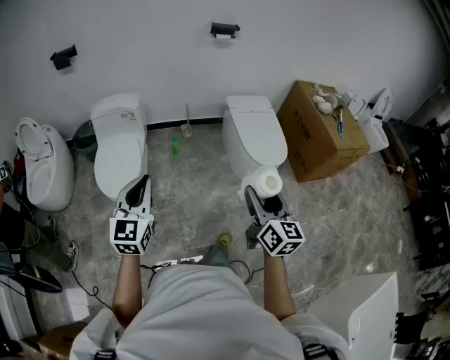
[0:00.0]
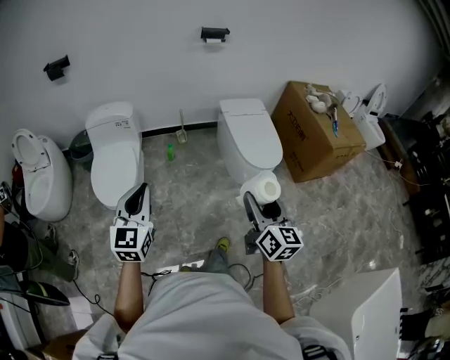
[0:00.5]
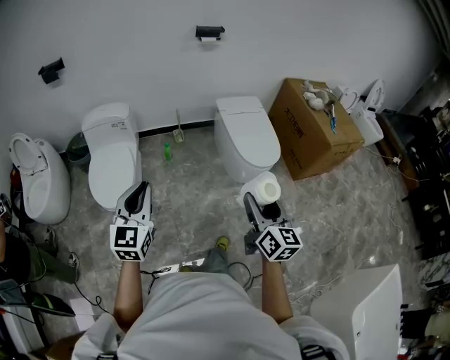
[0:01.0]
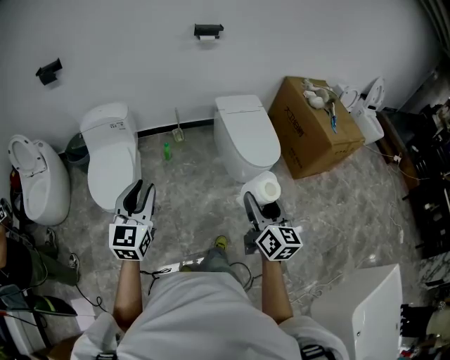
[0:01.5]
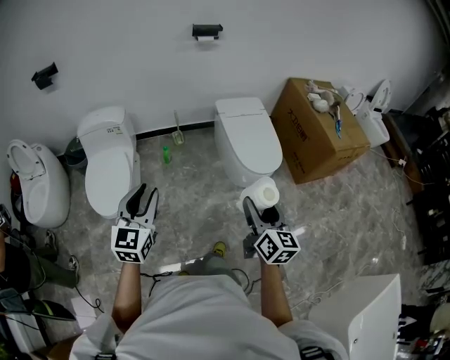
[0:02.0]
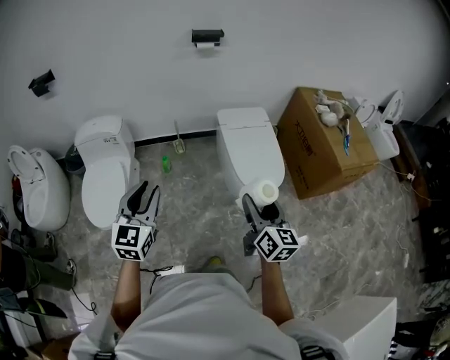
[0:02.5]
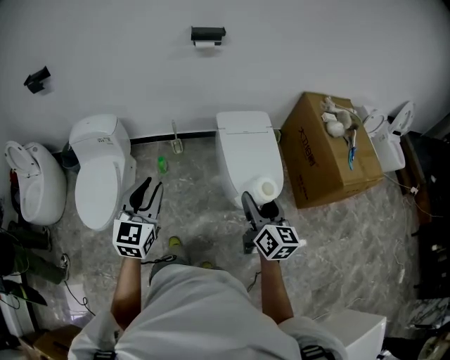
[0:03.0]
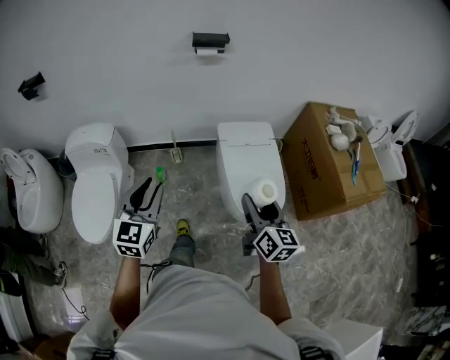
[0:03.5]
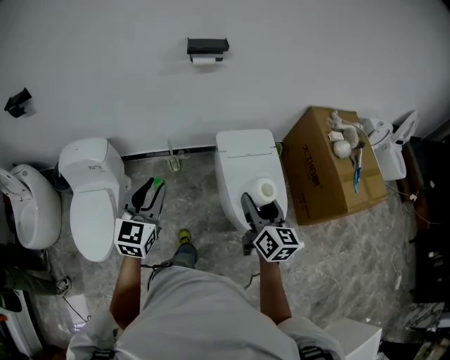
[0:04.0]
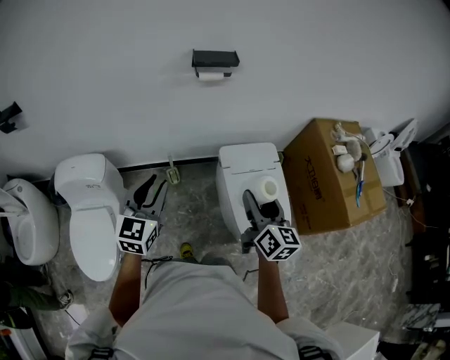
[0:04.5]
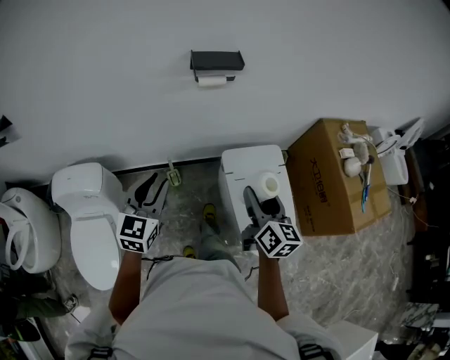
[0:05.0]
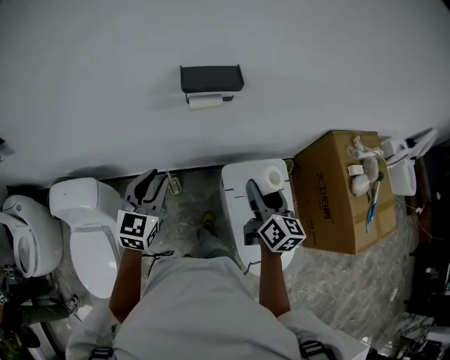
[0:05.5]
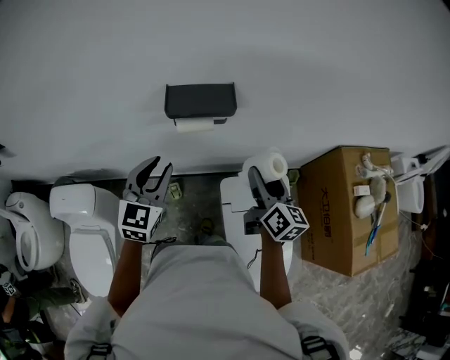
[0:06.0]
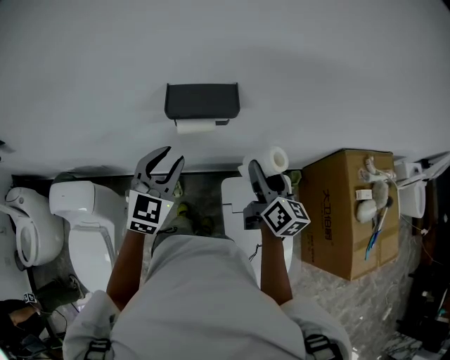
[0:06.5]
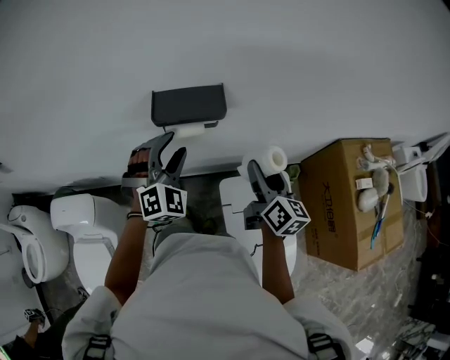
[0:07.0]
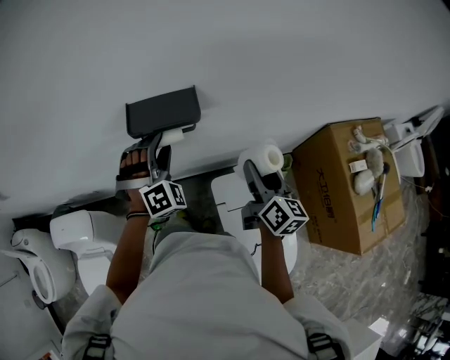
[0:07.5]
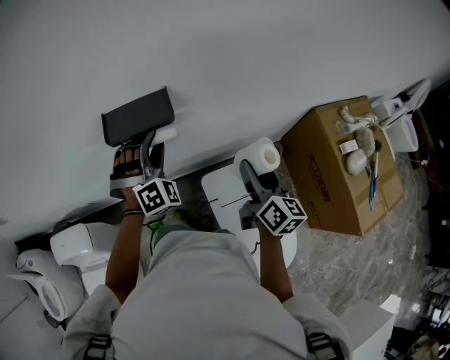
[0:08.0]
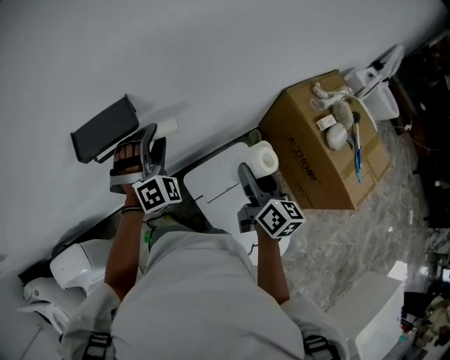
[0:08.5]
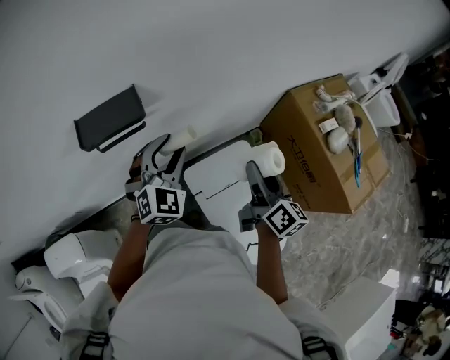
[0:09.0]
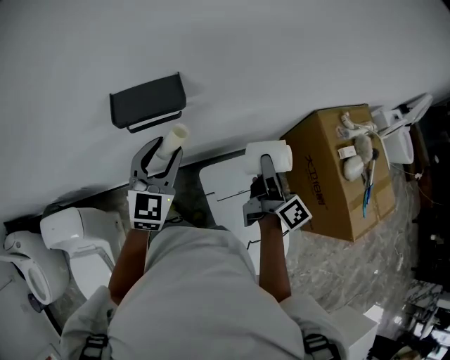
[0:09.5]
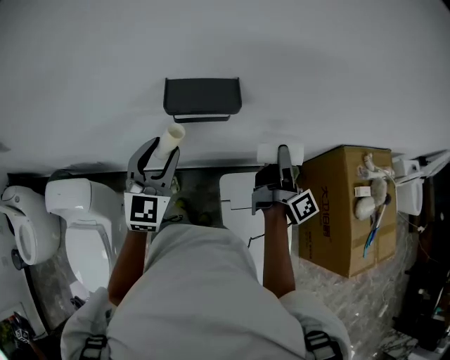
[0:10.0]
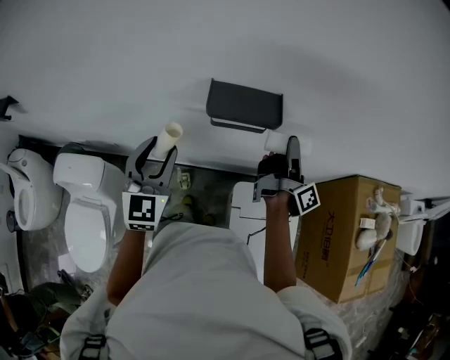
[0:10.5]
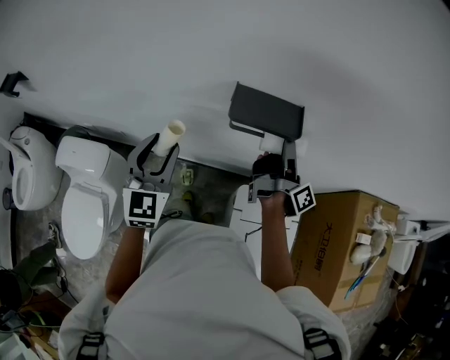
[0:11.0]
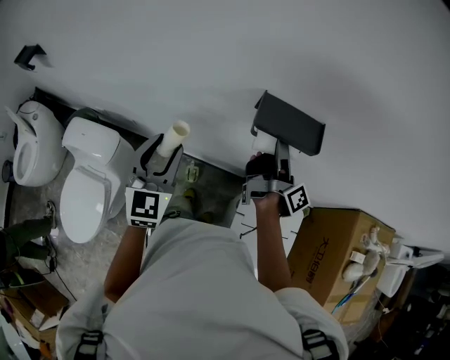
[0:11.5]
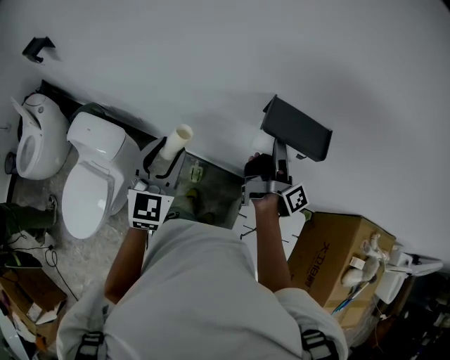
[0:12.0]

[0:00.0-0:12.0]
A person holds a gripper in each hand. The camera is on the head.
0:00.0 to 0:02.0: The right gripper goes some 10 cm to the right and forward; the left gripper goes some 10 cm forward and to the right, and opens.
0:02.0 to 0:04.0: The two grippers travel together, forward, about 50 cm.
0:04.0 to 0:06.0: The two grippers travel together, forward, roughly 50 cm.
0:06.0 to 0:08.0: The right gripper shifts roughly 10 cm to the right, while the left gripper goes approximately 15 cm forward and to the right, and rotates around the line of its fingers by about 60 degrees, clockwise from behind.
0:08.0 to 0:10.0: The left gripper travels backward, to the left and upward by roughly 15 cm, and rolls counterclockwise, seen from behind, by about 60 degrees, while the right gripper ends up approximately 5 cm from where it was, and swivels some 40 degrees.
0:10.0 to 0:12.0: The left gripper is displaced to the left by some 15 cm, and swivels about 20 degrees, while the right gripper heads to the left and forward, covering about 25 cm, and swivels approximately 30 degrees.

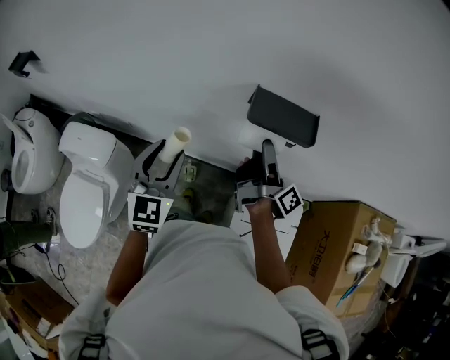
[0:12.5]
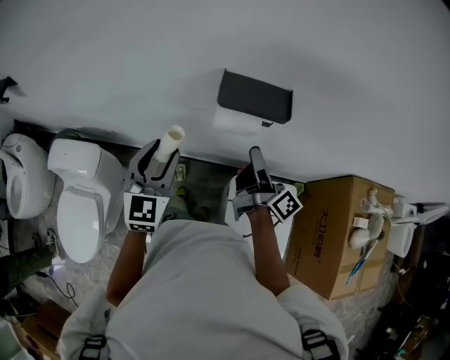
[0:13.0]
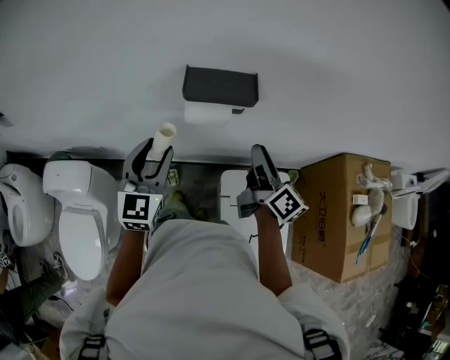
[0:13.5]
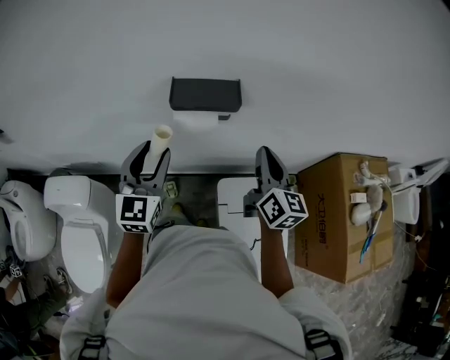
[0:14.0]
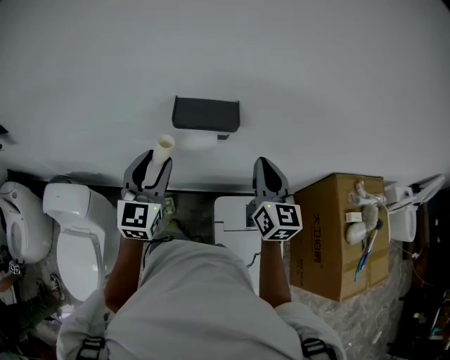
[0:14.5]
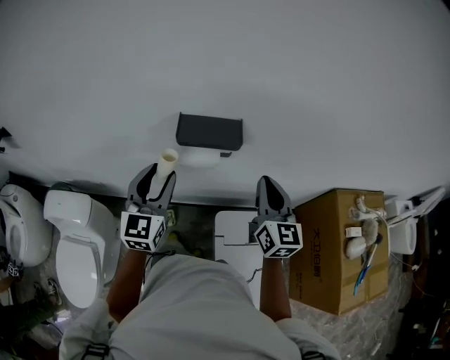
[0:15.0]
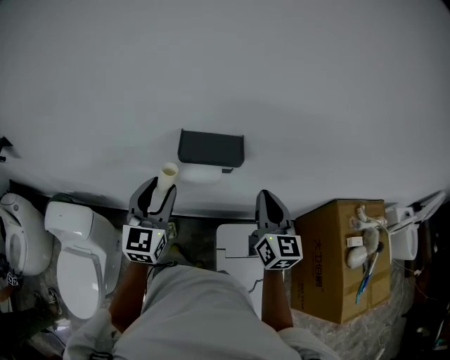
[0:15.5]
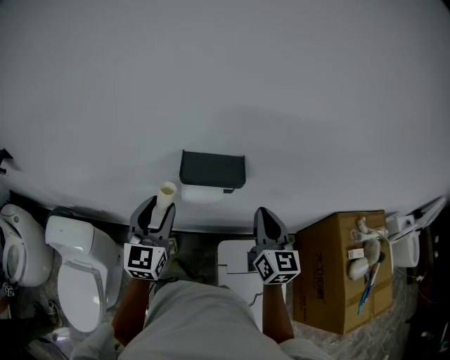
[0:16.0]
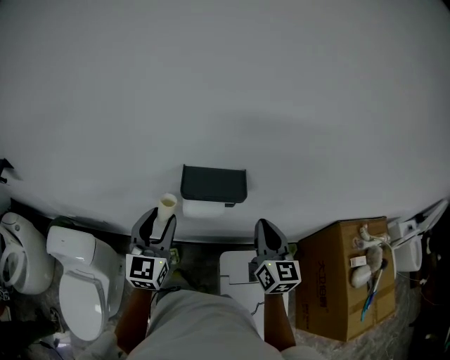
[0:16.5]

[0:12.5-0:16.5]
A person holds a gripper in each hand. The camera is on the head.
0:12.5 to 0:14.5: The left gripper moves to the right and upward, approximately 15 cm; the right gripper travels to the right, backward and upward by about 20 cm, rotates around the line of its fingers by approximately 80 degrees, counterclockwise from behind, and closes.
0:14.5 to 0:16.5: The grippers stay close to where they were, moving slightly.

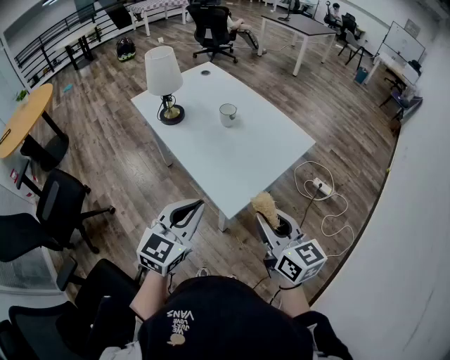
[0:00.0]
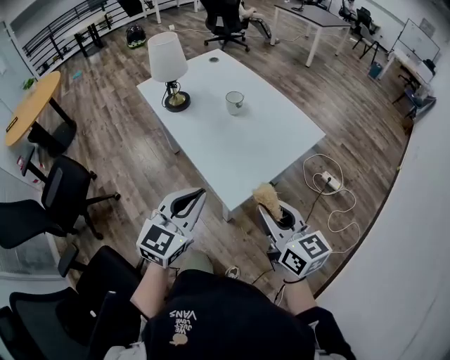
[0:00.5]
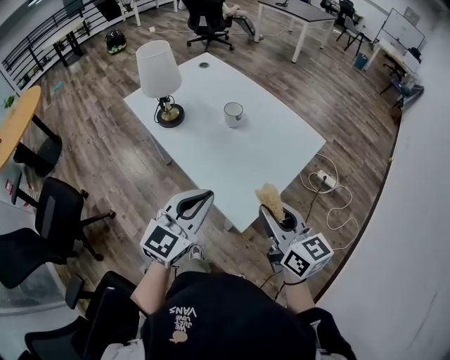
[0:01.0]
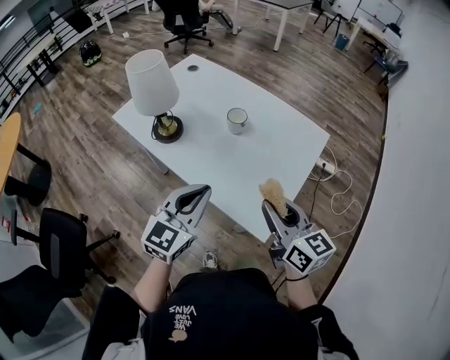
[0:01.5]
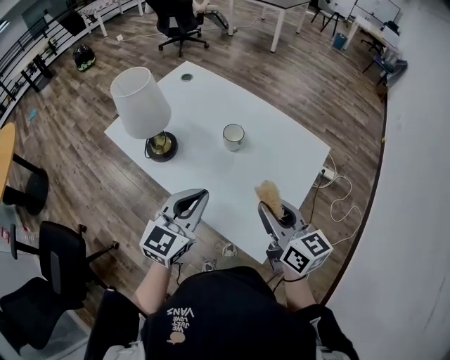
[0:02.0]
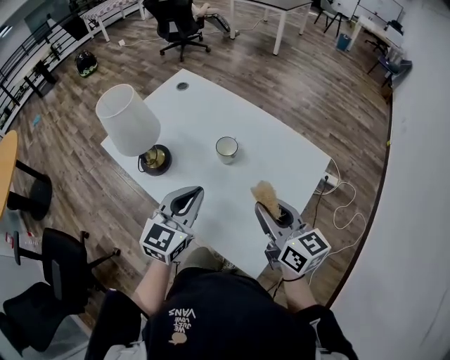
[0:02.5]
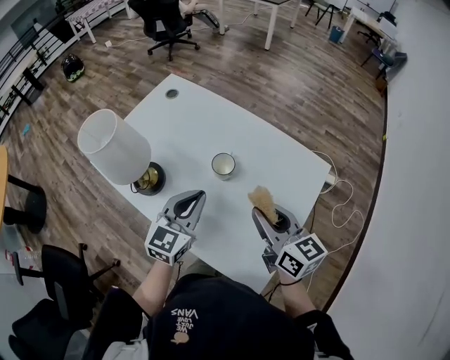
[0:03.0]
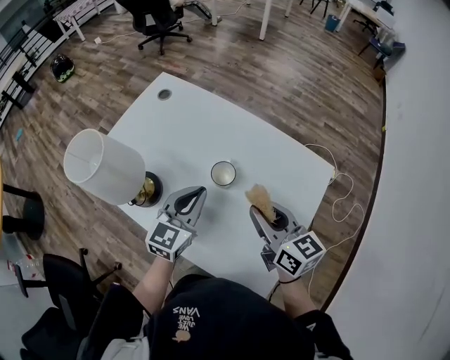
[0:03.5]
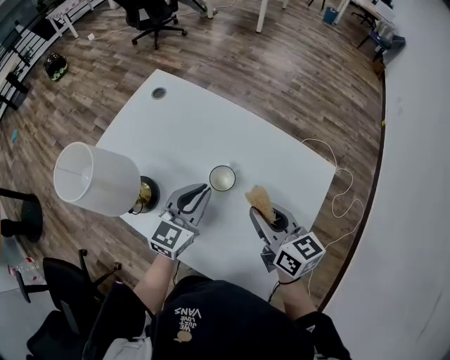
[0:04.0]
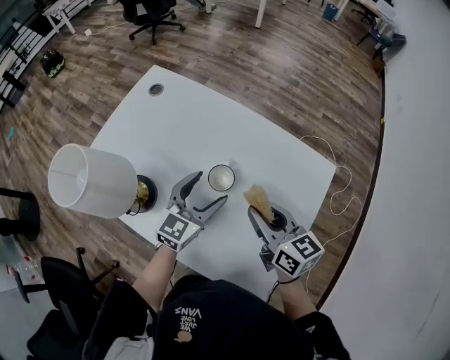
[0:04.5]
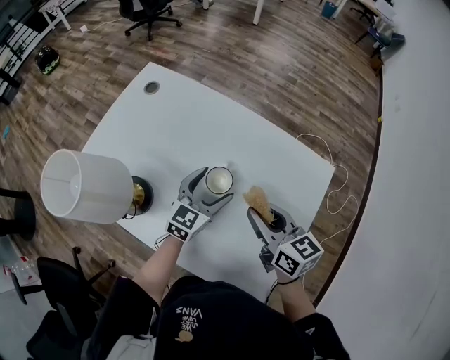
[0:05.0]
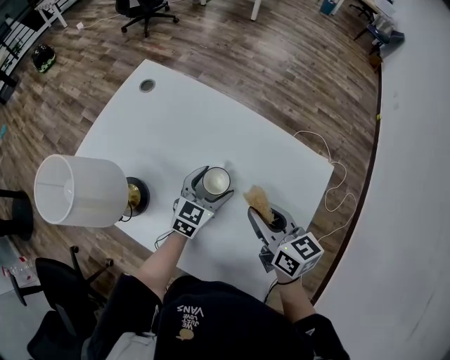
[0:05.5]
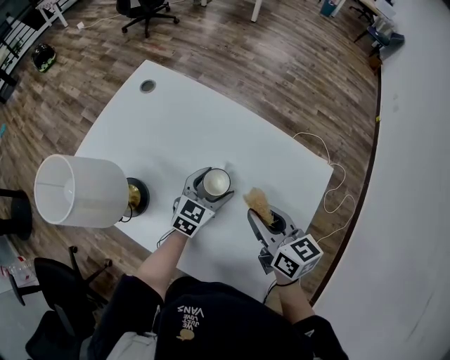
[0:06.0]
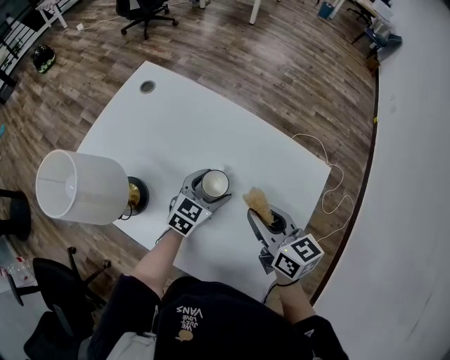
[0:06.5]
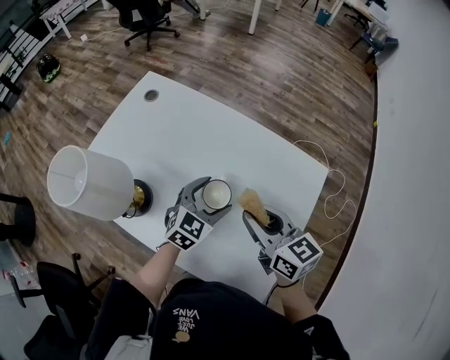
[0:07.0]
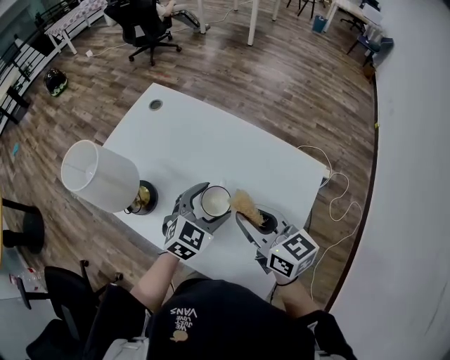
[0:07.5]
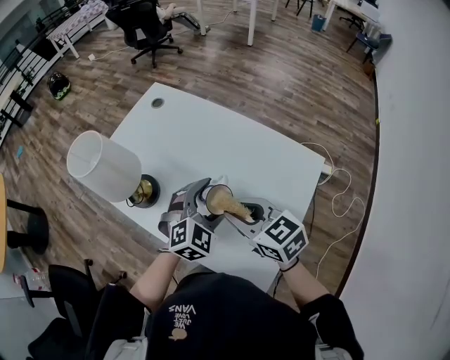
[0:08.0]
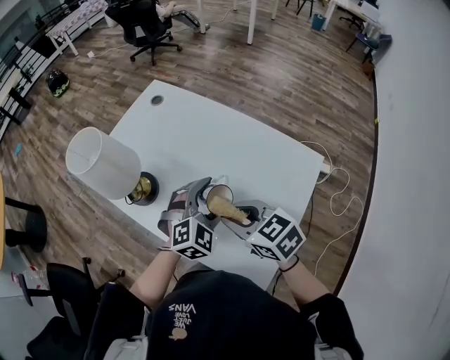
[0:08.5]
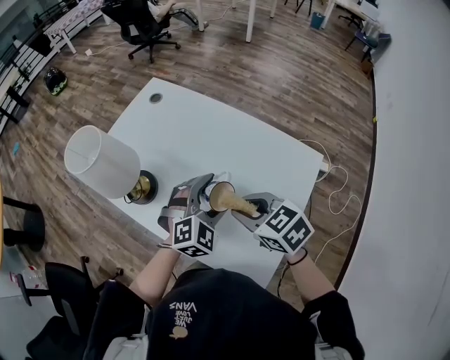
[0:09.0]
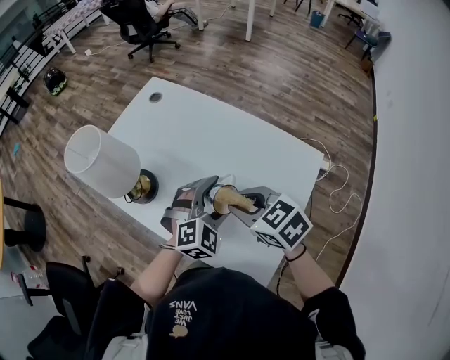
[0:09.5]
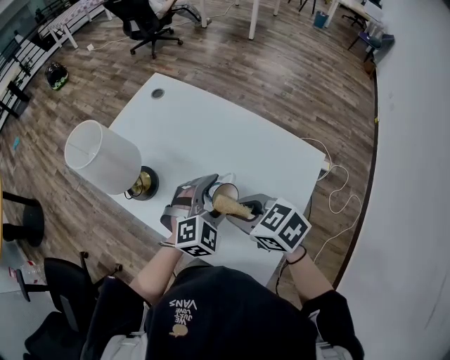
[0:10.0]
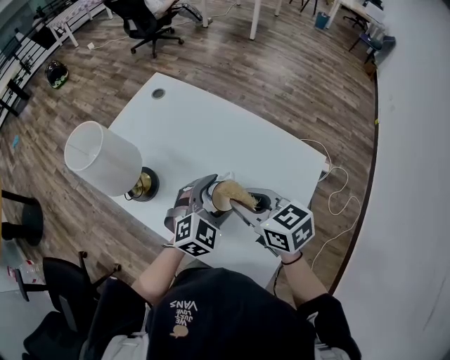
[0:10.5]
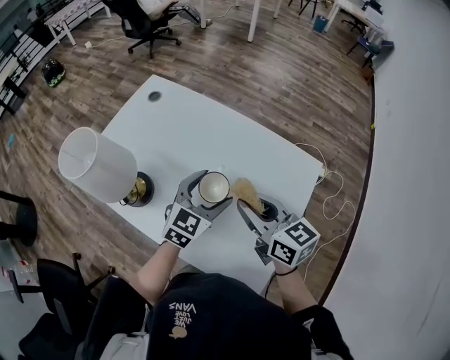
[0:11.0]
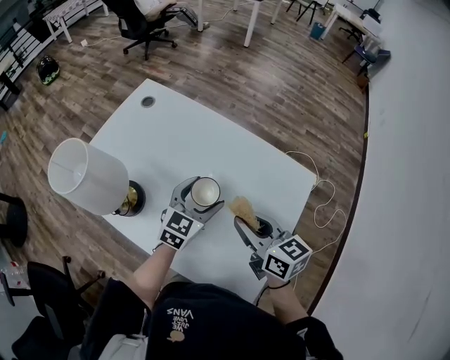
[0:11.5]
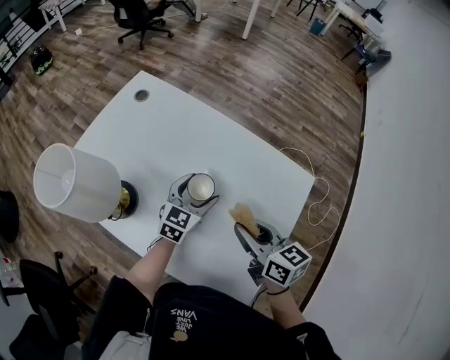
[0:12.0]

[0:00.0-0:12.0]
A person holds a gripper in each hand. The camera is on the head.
0:00.0 to 0:02.0: The right gripper is displaced forward and to the left by roughly 25 cm; the left gripper goes some 25 cm forward.
0:02.0 to 0:04.0: The grippers both shift forward by some 20 cm.
0:04.0 to 0:06.0: The left gripper heads downward, to the right and forward, covering about 15 cm, and opens.
0:06.0 to 0:08.0: The right gripper shifts approximately 10 cm backward, to the left and upward, and rotates approximately 30 degrees. Meanwhile the left gripper heads upward and backward, covering about 15 cm, and swivels about 40 degrees.
0:08.0 to 0:10.0: The right gripper changes its angle by some 20 degrees.
0:10.0 to 0:12.0: The right gripper goes approximately 10 cm to the right and forward, and rotates about 40 degrees, while the left gripper shifts roughly 15 cm forward and downward, and twists roughly 40 degrees counterclockwise, seen from behind.
